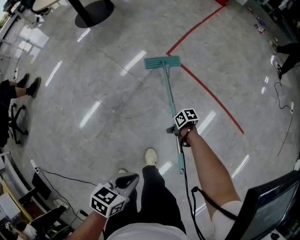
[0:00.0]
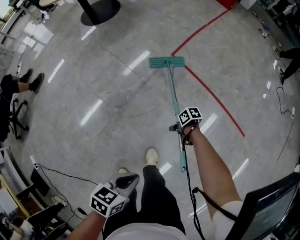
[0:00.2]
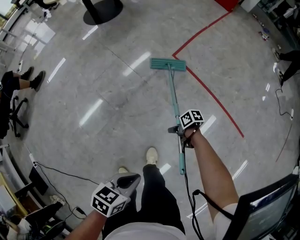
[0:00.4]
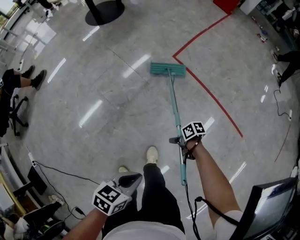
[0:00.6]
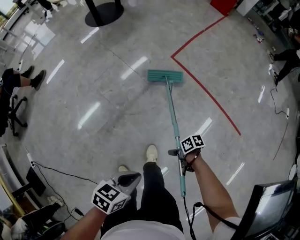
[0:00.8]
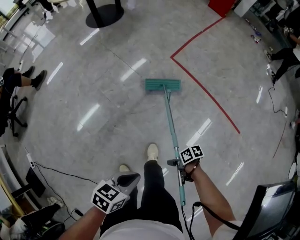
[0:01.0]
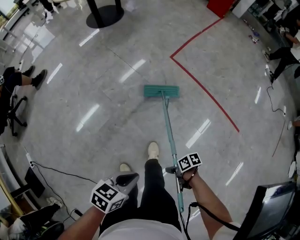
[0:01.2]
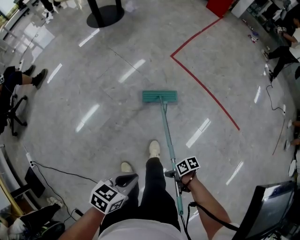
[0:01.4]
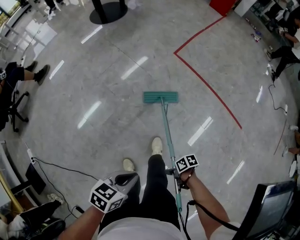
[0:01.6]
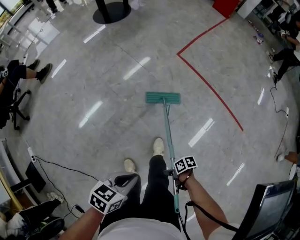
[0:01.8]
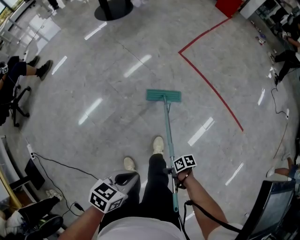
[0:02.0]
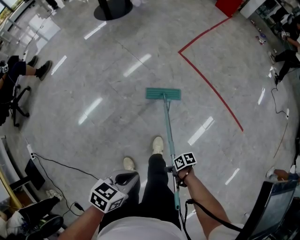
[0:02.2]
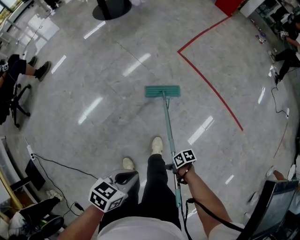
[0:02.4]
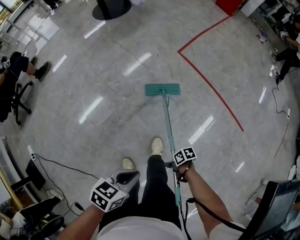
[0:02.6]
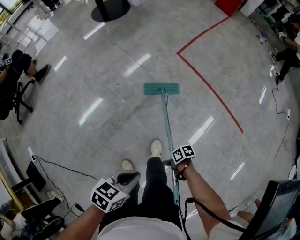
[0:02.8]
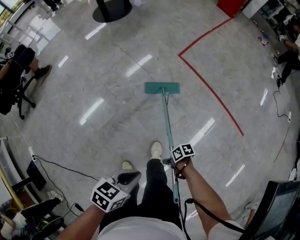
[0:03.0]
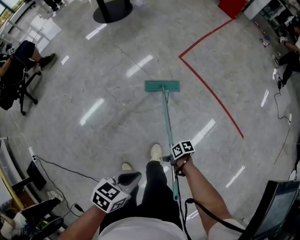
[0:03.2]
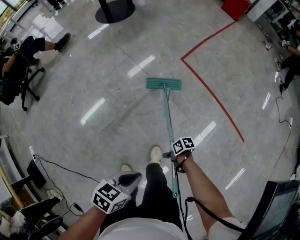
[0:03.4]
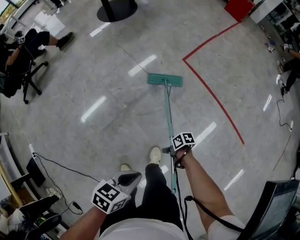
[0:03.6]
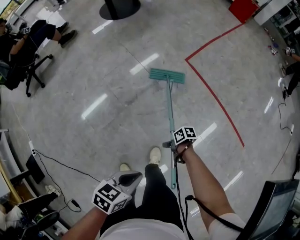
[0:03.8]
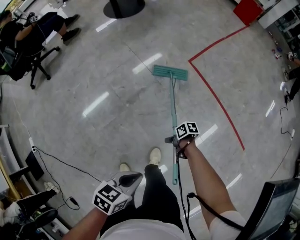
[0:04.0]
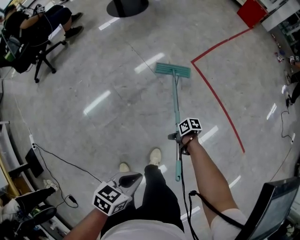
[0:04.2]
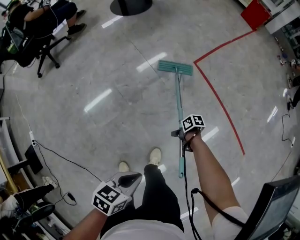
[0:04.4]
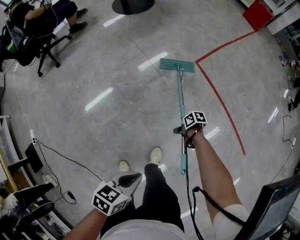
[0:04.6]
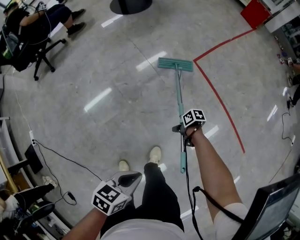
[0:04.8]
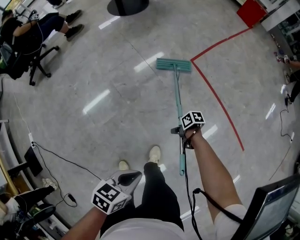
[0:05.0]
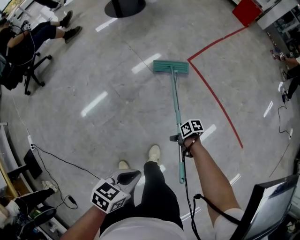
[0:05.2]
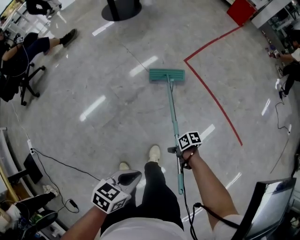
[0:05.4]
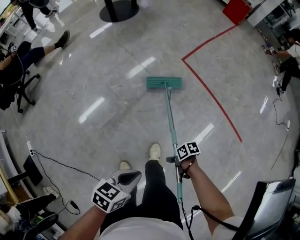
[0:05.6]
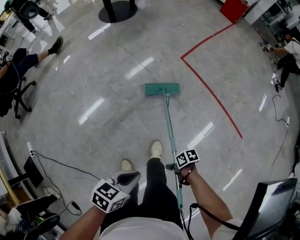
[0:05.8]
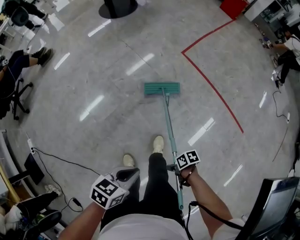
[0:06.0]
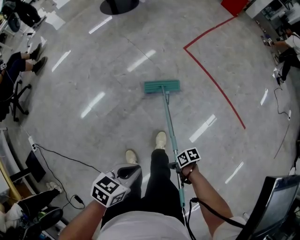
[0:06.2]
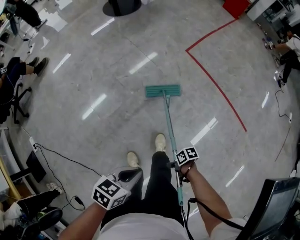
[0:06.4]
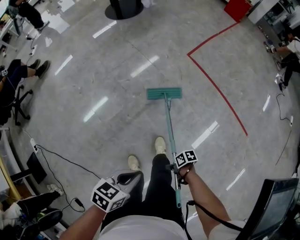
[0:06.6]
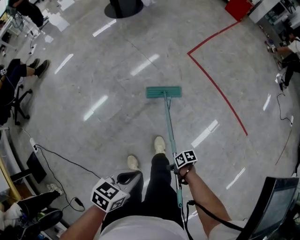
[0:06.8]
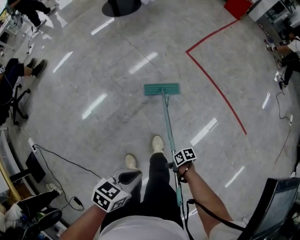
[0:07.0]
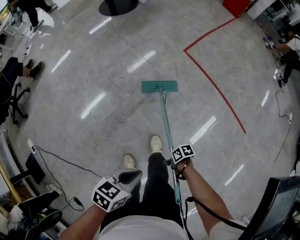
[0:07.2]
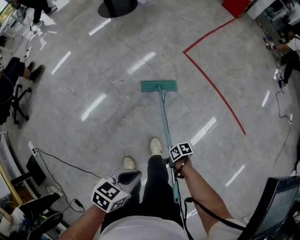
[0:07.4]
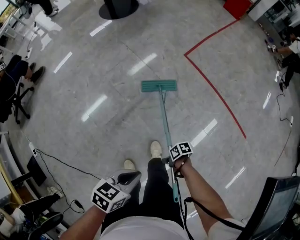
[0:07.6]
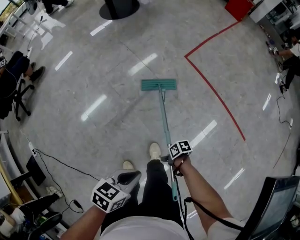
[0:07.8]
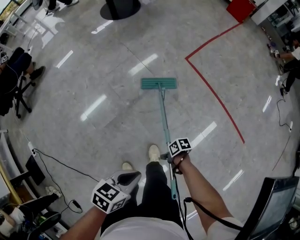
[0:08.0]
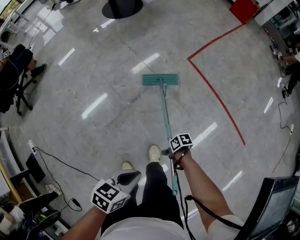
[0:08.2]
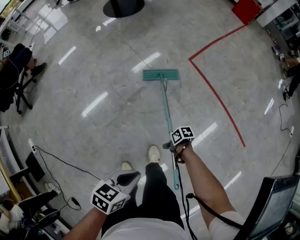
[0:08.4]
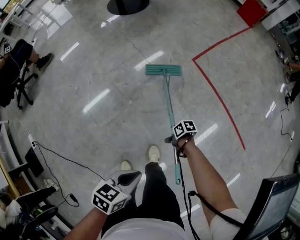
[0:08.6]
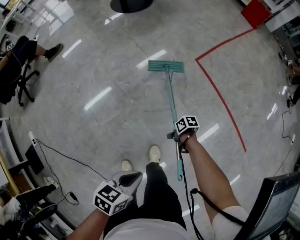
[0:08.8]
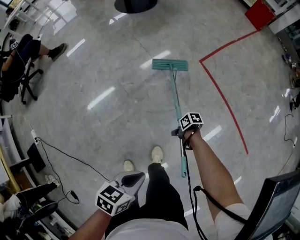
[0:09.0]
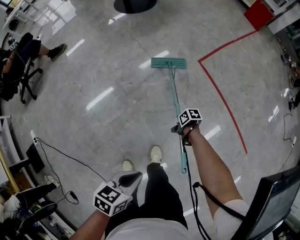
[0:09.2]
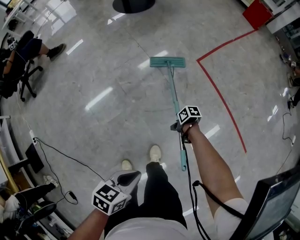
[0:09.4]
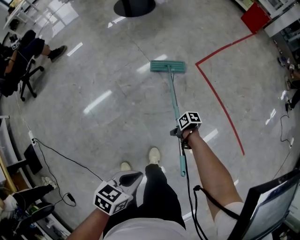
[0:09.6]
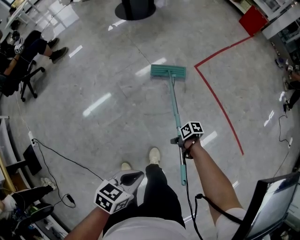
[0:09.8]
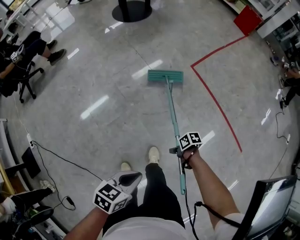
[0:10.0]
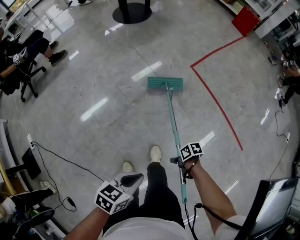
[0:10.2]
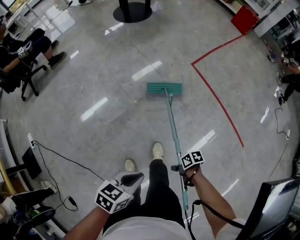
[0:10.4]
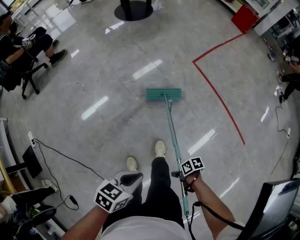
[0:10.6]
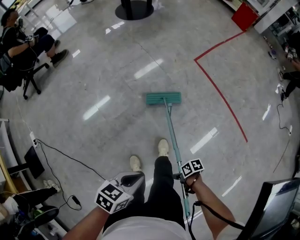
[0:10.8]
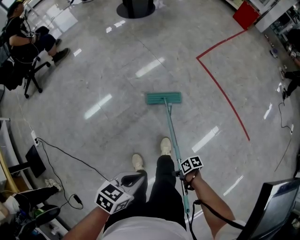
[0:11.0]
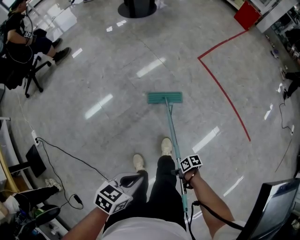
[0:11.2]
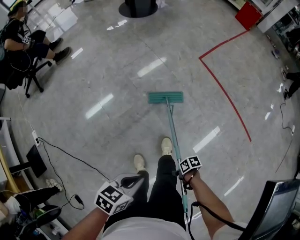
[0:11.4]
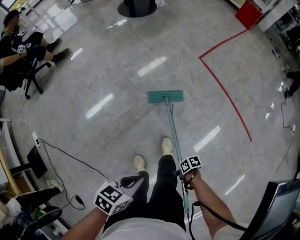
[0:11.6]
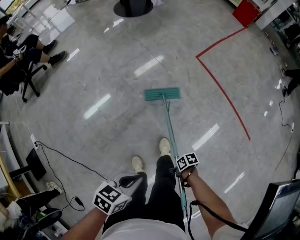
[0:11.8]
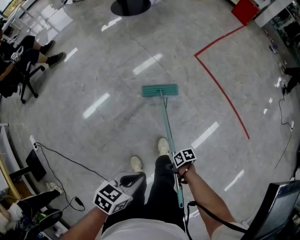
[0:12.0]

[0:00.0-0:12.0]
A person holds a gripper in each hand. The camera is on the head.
0:00.0 to 0:01.6: The left gripper moves approximately 15 cm.
0:01.6 to 0:03.0: The left gripper changes place by about 5 cm.
0:03.0 to 0:04.4: The left gripper shifts by approximately 5 cm.
0:04.4 to 0:06.0: The left gripper changes place by roughly 10 cm.
0:07.6 to 0:09.0: The left gripper shifts by roughly 5 cm.
0:09.0 to 0:10.4: The left gripper changes place by some 10 cm.

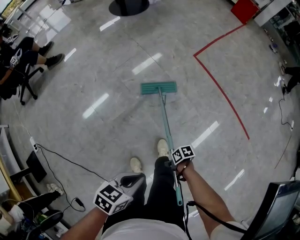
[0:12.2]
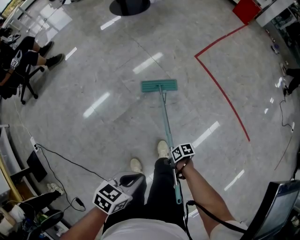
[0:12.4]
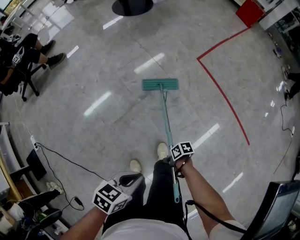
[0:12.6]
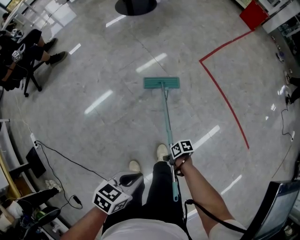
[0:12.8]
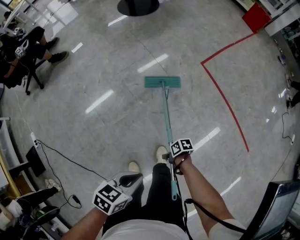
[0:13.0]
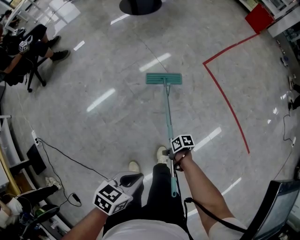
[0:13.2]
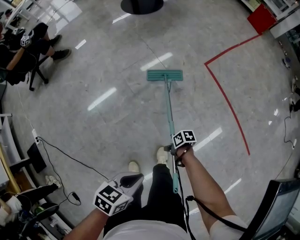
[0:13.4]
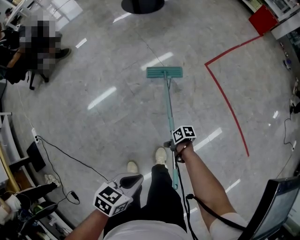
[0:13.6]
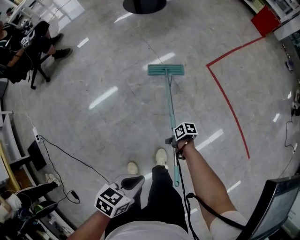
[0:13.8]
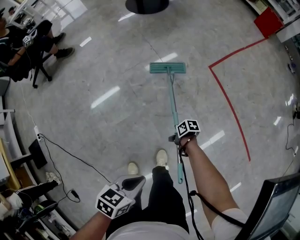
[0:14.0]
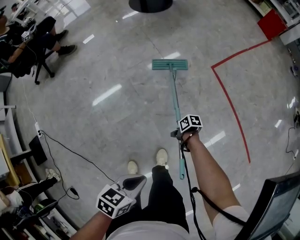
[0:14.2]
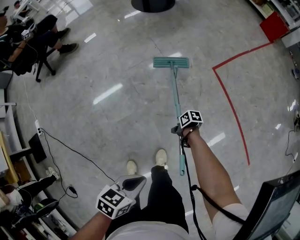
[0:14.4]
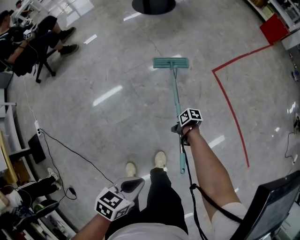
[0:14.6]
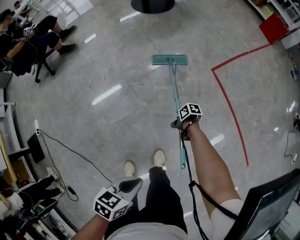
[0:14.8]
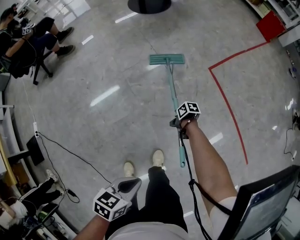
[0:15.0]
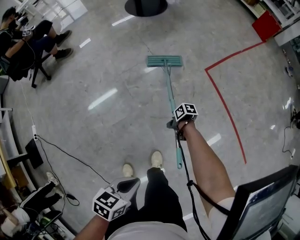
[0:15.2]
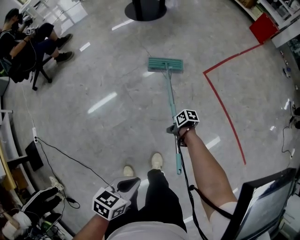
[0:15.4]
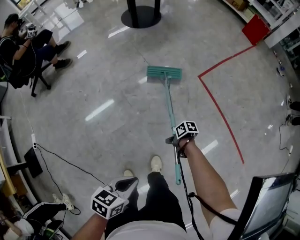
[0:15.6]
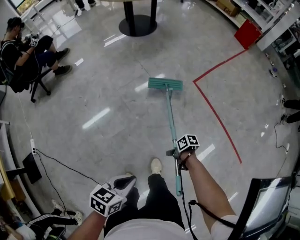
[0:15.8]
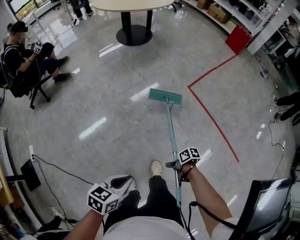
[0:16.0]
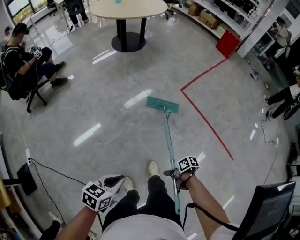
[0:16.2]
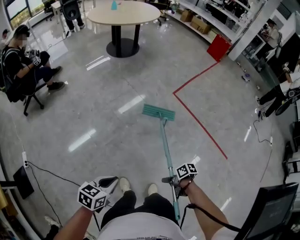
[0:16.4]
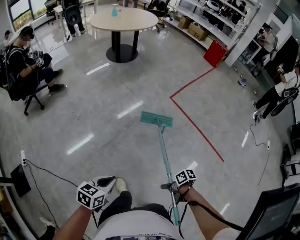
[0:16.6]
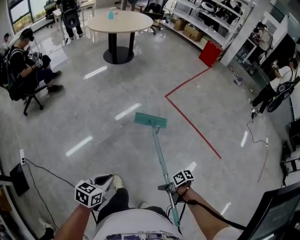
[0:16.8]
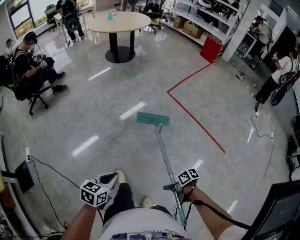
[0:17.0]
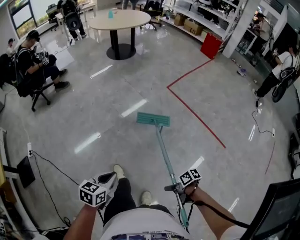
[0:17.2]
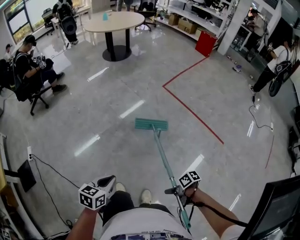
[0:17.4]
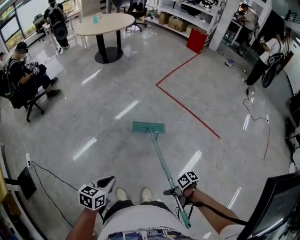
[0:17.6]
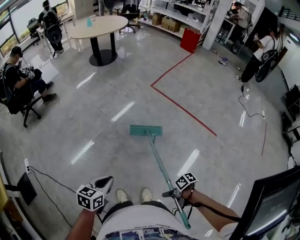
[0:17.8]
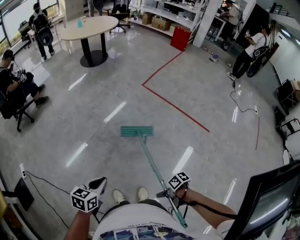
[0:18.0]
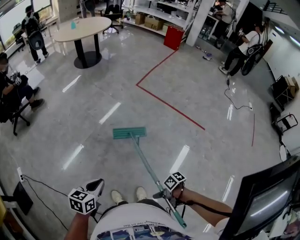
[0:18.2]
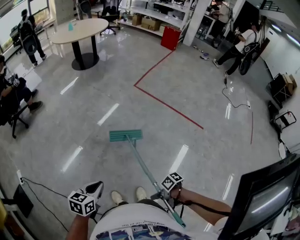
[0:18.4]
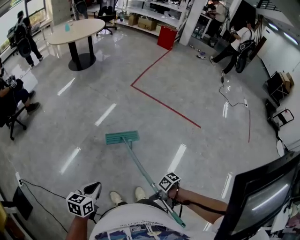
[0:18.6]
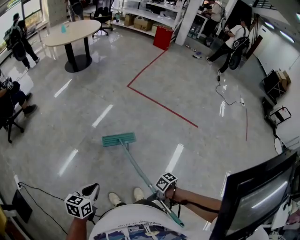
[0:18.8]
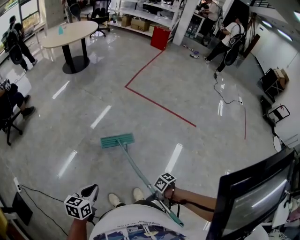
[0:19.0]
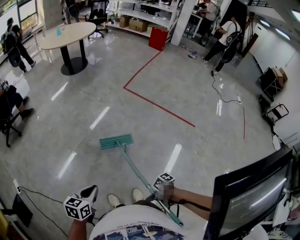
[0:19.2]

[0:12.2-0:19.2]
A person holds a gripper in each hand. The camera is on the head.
0:12.2 to 0:13.6: The left gripper shifts by some 10 cm.
0:15.0 to 0:16.4: The left gripper shifts by about 20 cm.
0:16.4 to 0:17.8: The left gripper moves roughly 25 cm.

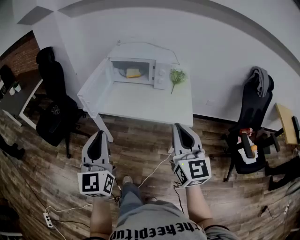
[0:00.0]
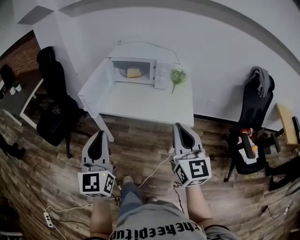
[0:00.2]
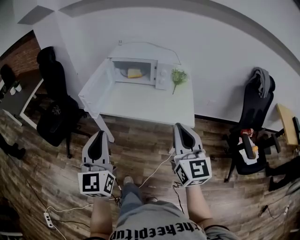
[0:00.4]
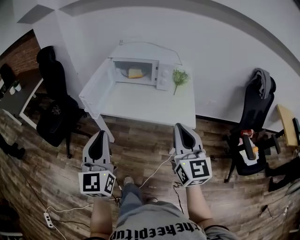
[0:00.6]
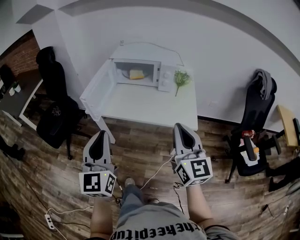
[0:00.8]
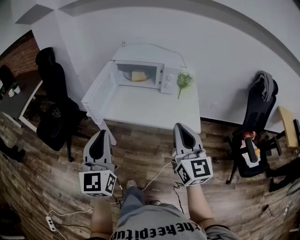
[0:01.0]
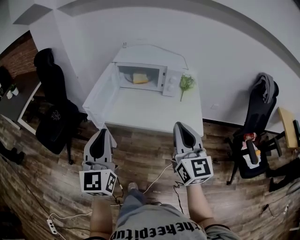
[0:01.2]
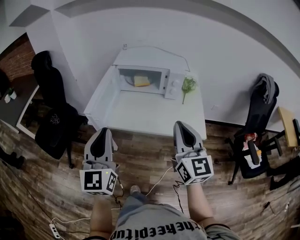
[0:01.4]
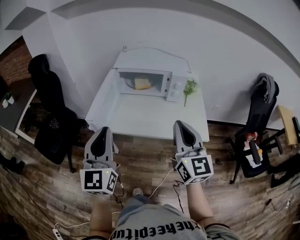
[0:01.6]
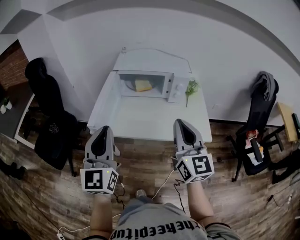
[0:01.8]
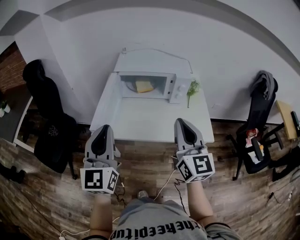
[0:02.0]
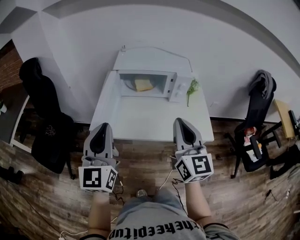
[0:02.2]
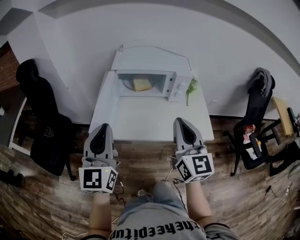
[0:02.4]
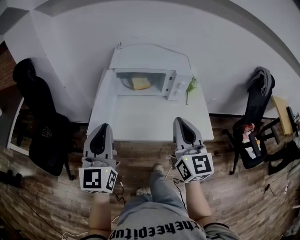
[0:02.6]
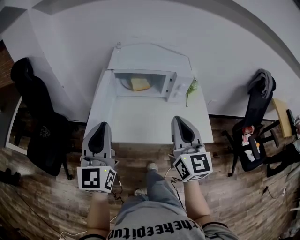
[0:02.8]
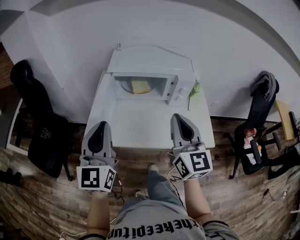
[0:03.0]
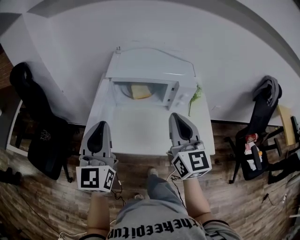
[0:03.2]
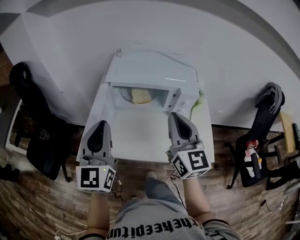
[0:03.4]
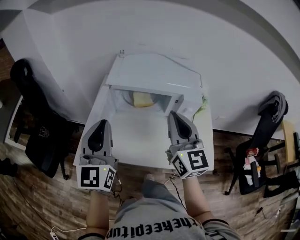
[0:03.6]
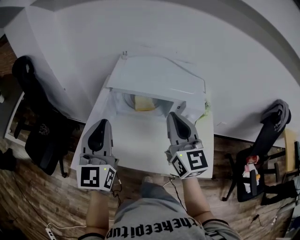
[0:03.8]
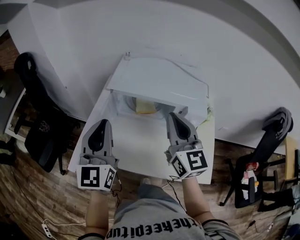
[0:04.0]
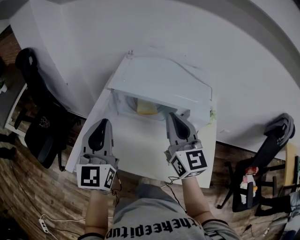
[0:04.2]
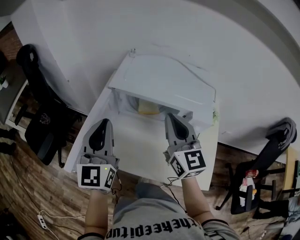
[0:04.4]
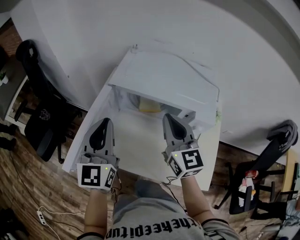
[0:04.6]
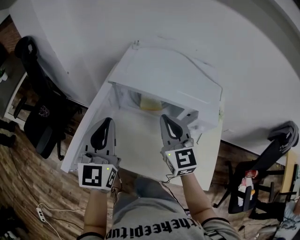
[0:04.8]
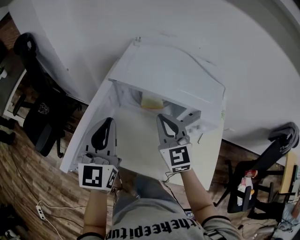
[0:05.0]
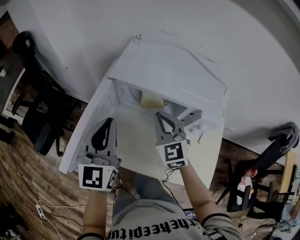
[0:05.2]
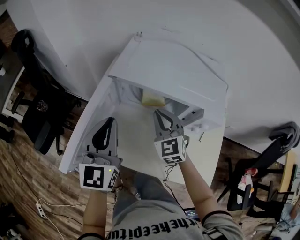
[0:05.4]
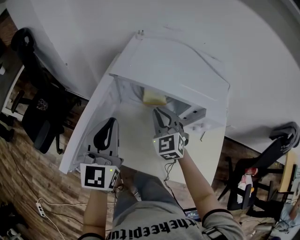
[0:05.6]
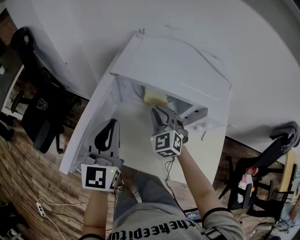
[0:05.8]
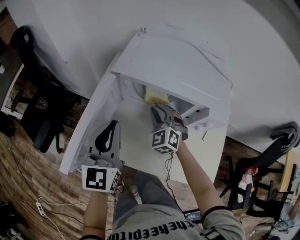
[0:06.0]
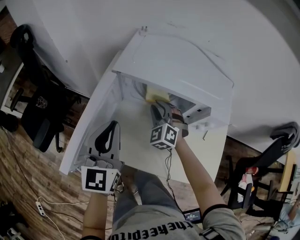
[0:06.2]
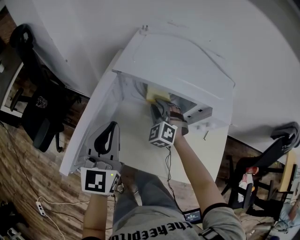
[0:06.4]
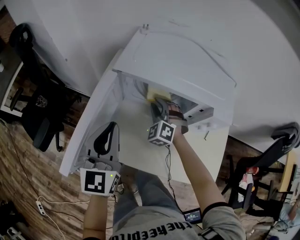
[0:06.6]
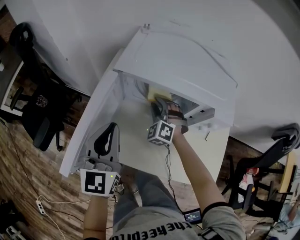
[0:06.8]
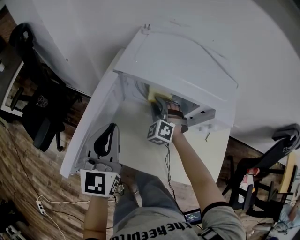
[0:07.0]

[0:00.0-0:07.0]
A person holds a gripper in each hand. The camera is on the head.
0:00.0 to 0:01.4: The two grippers go some 15 cm forward and to the left.
0:01.4 to 0:02.8: The left gripper heads forward, covering some 15 cm. Meanwhile the right gripper goes some 15 cm forward and to the left.
0:02.8 to 0:04.2: Both grippers move forward, approximately 20 cm.
0:04.2 to 0:05.6: The left gripper is displaced downward by some 5 cm. The right gripper moves downward and forward, about 20 cm, and rotates roughly 40 degrees.
0:05.6 to 0:07.0: The right gripper heads downward and forward, covering some 10 cm, rotates about 30 degrees, and opens.
